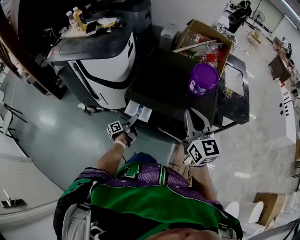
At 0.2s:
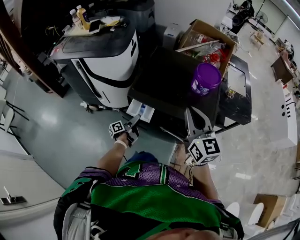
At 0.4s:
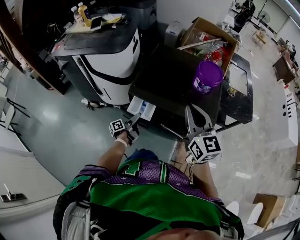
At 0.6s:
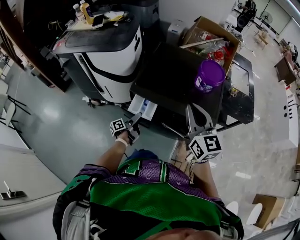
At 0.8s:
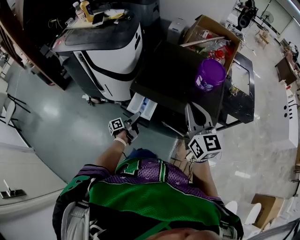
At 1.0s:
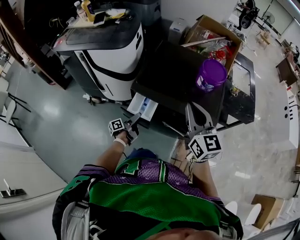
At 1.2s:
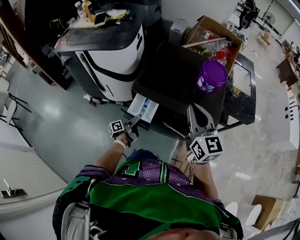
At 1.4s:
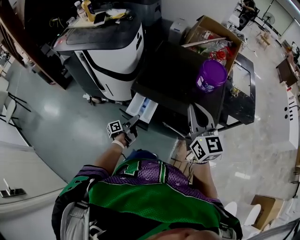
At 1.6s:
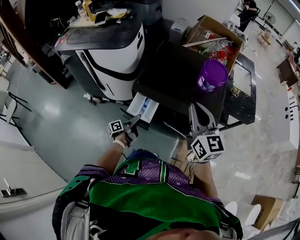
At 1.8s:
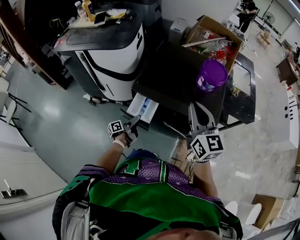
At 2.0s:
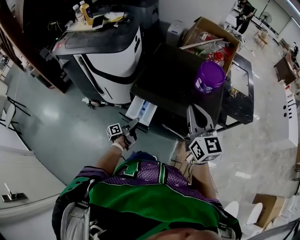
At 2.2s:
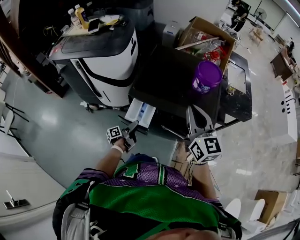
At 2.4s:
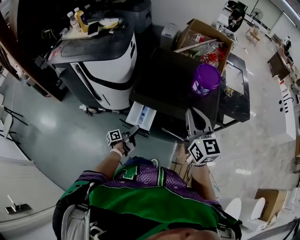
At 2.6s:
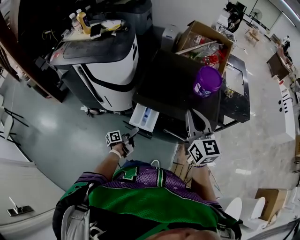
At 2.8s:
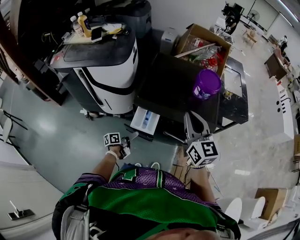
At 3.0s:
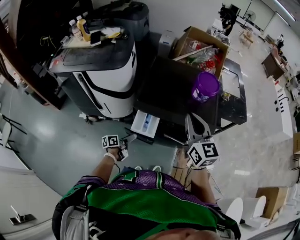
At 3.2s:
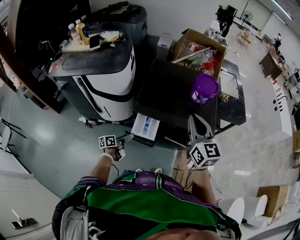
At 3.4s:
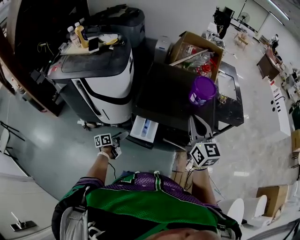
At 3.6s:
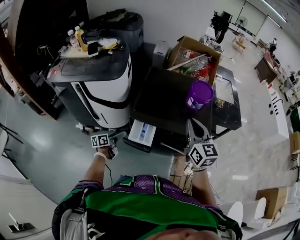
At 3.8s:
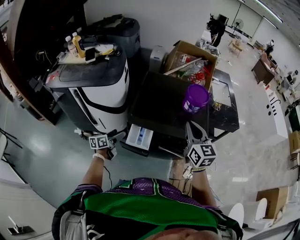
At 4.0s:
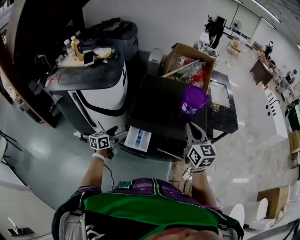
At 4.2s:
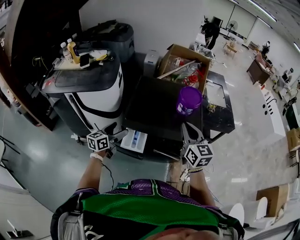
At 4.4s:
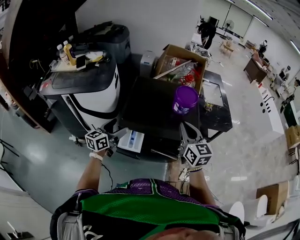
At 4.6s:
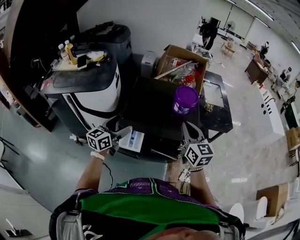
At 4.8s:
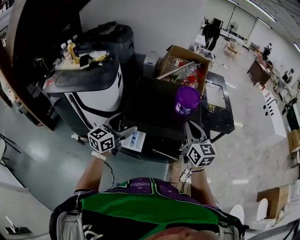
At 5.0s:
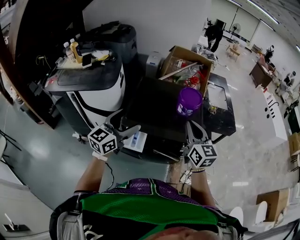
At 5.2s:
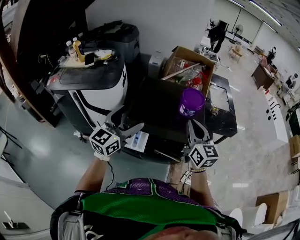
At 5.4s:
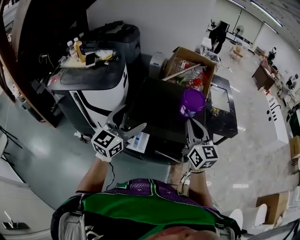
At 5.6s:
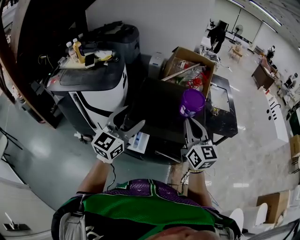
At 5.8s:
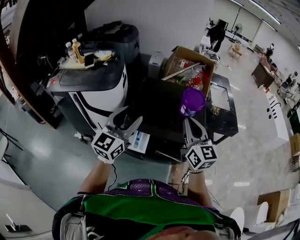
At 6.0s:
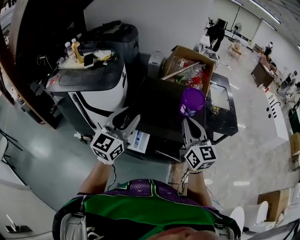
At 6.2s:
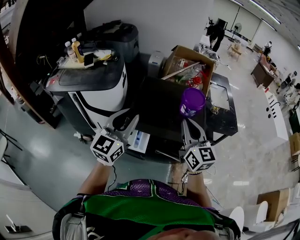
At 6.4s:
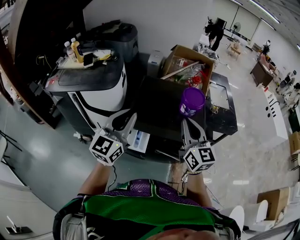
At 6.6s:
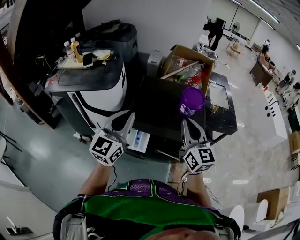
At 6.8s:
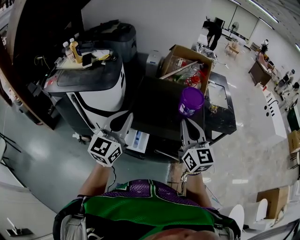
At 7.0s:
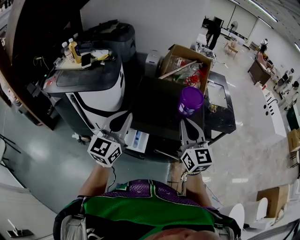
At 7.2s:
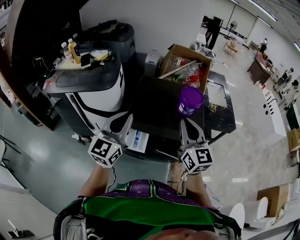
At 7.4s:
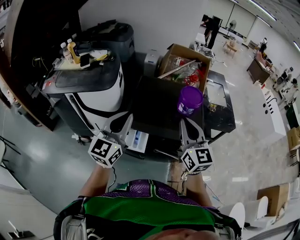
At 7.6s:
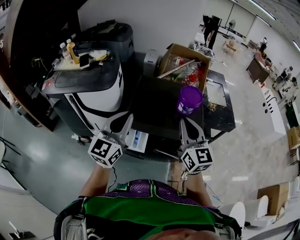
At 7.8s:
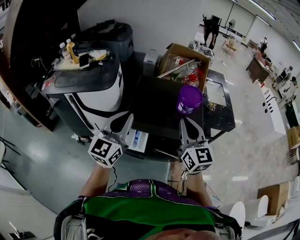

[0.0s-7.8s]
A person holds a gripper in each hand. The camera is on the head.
0.0s to 1.6s: There are only small adjustments of the grippers.
1.6s to 3.2s: The left gripper heads to the left, covering some 10 cm, and rotates roughly 30 degrees.
3.2s to 4.6s: The left gripper goes about 30 cm upward, and rotates around the line of its fingers by approximately 50 degrees, clockwise from behind. The right gripper moves to the right, some 5 cm.
4.6s to 6.2s: The right gripper shifts about 5 cm upward. The left gripper travels upward by approximately 15 cm, swivels some 30 degrees, and closes up.
6.2s to 7.8s: There are only small adjustments of the grippers.

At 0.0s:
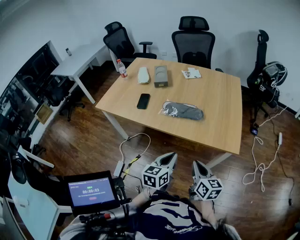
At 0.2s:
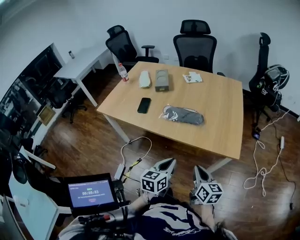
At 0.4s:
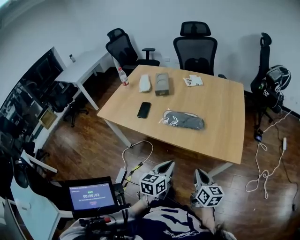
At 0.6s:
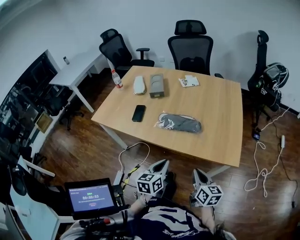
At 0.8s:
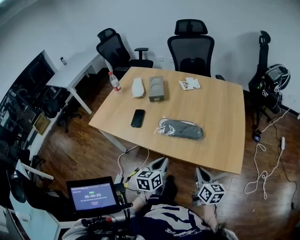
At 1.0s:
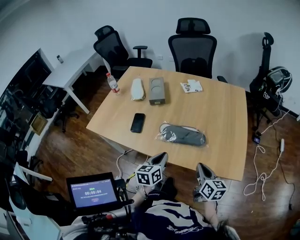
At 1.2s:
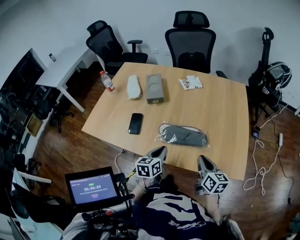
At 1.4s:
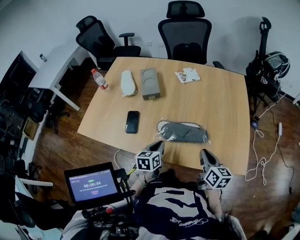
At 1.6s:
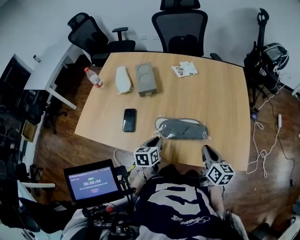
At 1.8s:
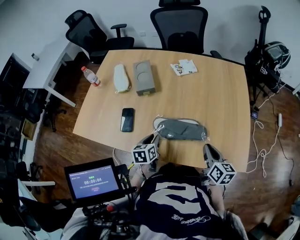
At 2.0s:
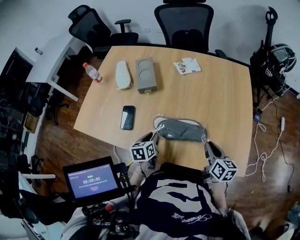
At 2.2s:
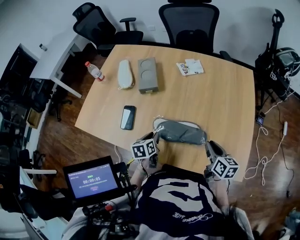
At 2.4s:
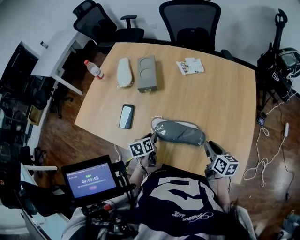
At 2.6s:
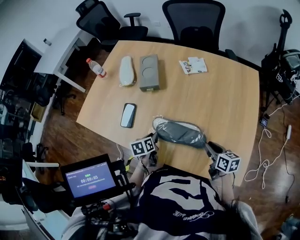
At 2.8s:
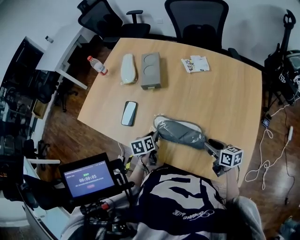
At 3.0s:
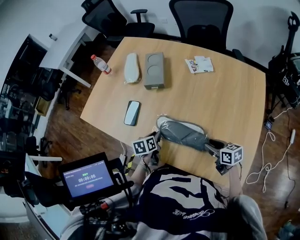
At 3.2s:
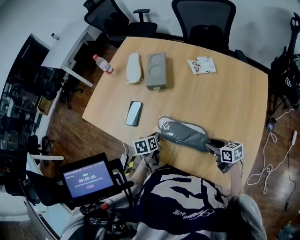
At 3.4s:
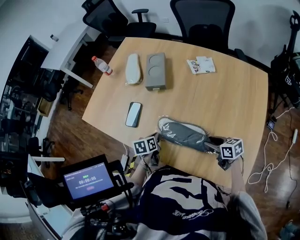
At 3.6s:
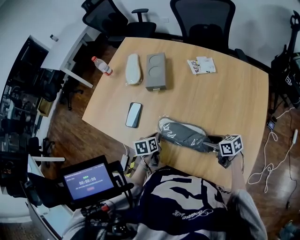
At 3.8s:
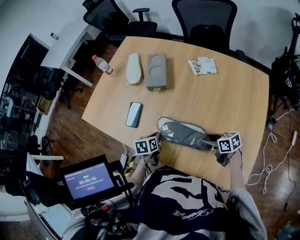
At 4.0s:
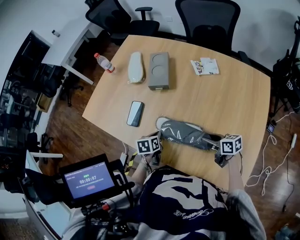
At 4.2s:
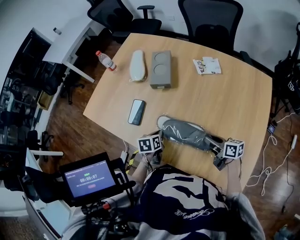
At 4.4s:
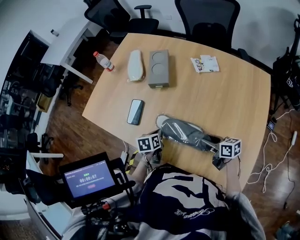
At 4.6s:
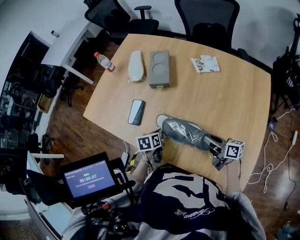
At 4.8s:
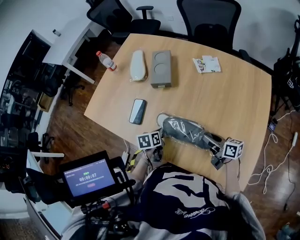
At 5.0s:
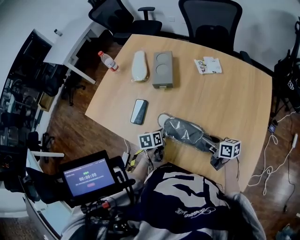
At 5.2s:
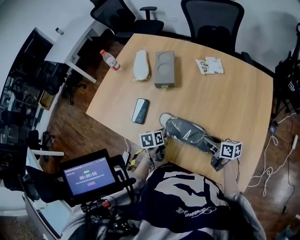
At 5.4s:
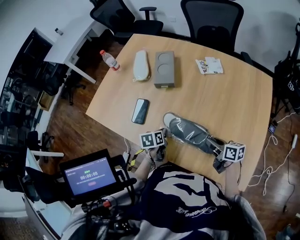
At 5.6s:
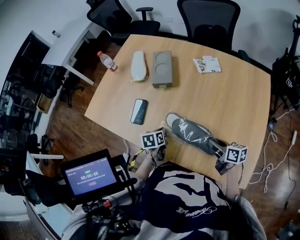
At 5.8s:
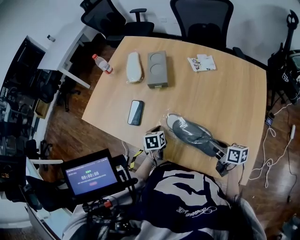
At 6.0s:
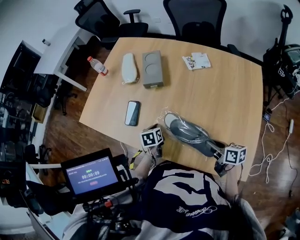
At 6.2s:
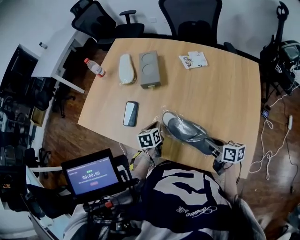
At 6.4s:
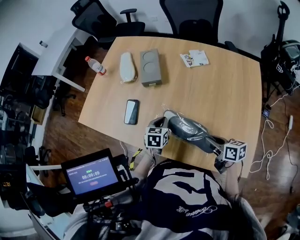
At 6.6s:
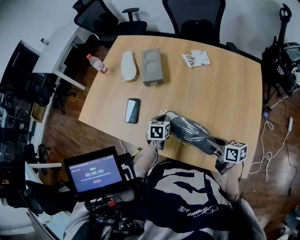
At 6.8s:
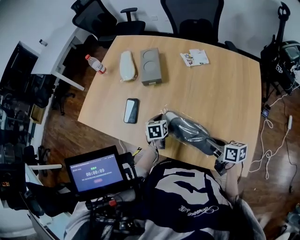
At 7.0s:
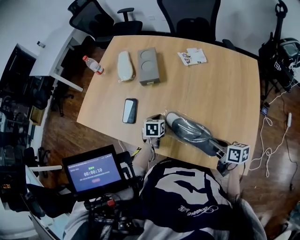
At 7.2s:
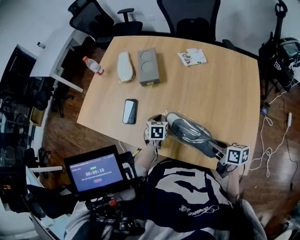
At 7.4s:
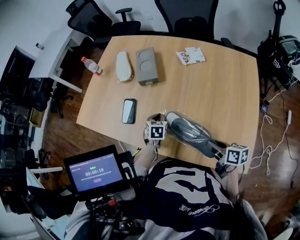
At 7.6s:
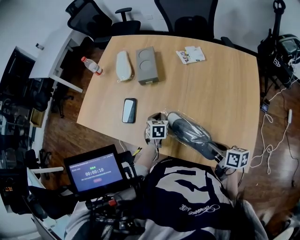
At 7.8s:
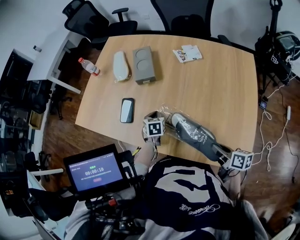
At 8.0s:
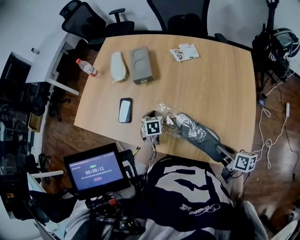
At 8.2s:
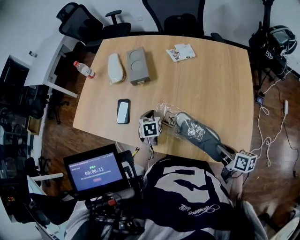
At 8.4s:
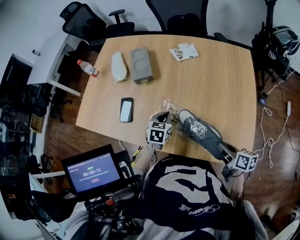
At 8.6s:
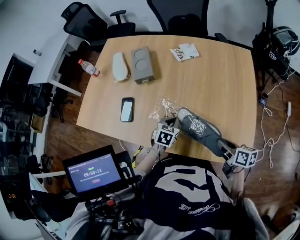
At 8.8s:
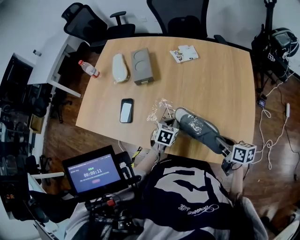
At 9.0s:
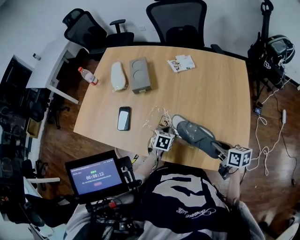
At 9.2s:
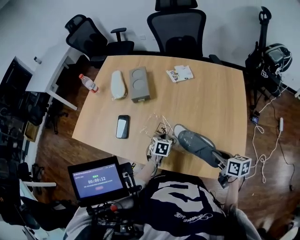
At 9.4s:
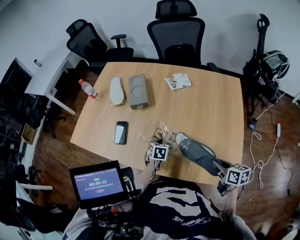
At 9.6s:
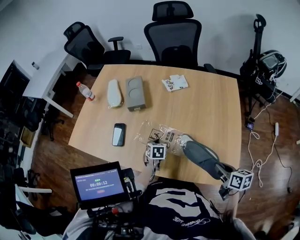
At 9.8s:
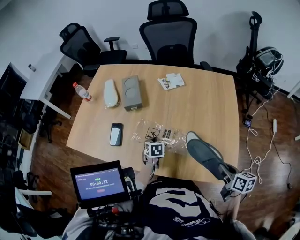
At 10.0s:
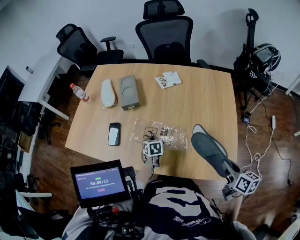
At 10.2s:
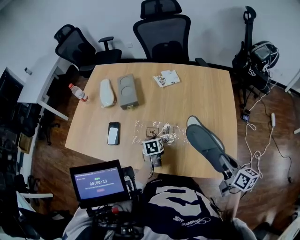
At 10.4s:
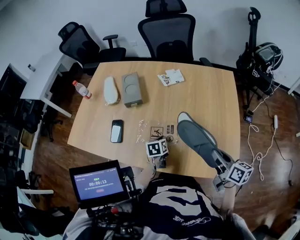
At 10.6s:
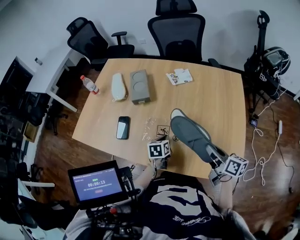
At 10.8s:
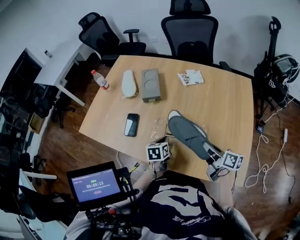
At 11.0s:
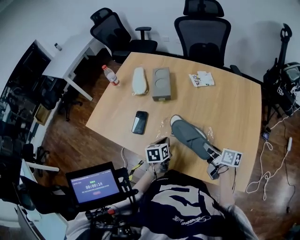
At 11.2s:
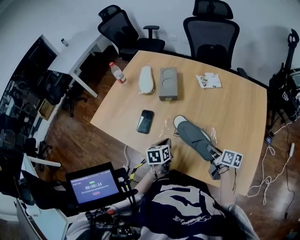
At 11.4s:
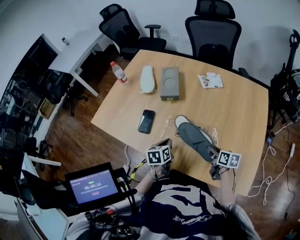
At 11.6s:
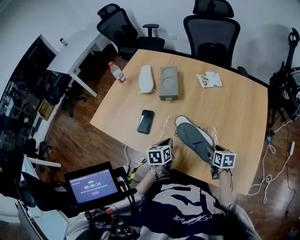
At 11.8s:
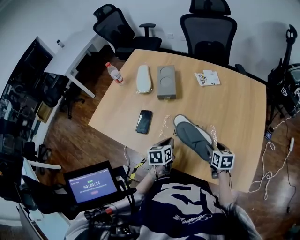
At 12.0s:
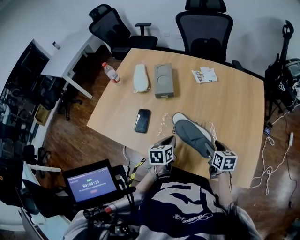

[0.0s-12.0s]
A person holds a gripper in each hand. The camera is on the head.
0.0s to 1.6s: The grippers both shift forward by about 30 cm.
1.6s to 3.0s: The right gripper goes some 10 cm downward, swivels about 40 degrees, and opens its fingers. The left gripper travels downward by some 5 cm, and changes its angle by about 20 degrees.
3.0s to 4.4s: The right gripper changes place by approximately 5 cm, while the left gripper closes up.
4.4s to 6.0s: The right gripper heads backward, covering some 5 cm, and closes.
6.0s to 7.6s: The left gripper rotates approximately 20 degrees.
7.6s to 9.0s: The right gripper is displaced to the right by about 5 cm. Meanwhile the left gripper is displaced to the right and backward by about 10 cm.
9.0s to 10.4s: The left gripper changes its angle by some 30 degrees. The right gripper goes some 10 cm upward, and turns by some 20 degrees.
10.4s to 12.0s: The left gripper travels to the left and upward by about 10 cm; the right gripper moves downward, to the left and forward, about 20 cm, swivels roughly 30 degrees, and opens up.

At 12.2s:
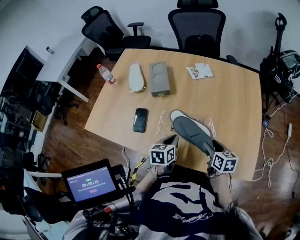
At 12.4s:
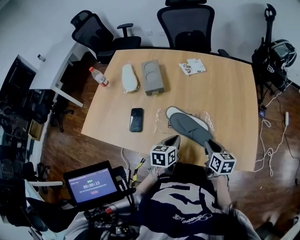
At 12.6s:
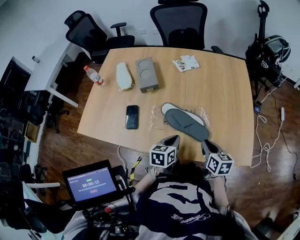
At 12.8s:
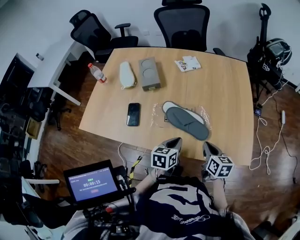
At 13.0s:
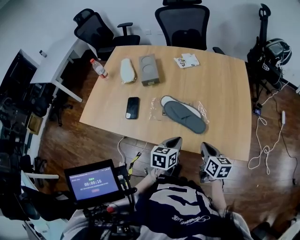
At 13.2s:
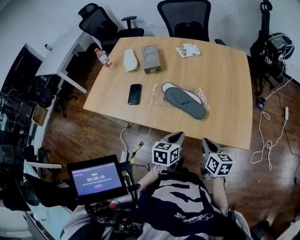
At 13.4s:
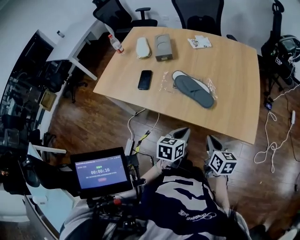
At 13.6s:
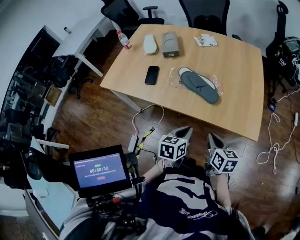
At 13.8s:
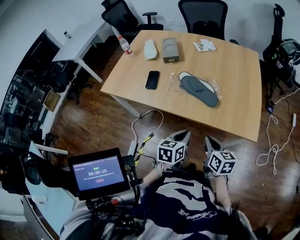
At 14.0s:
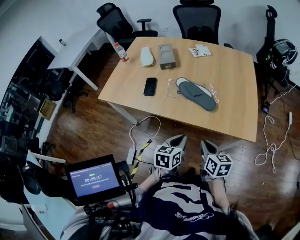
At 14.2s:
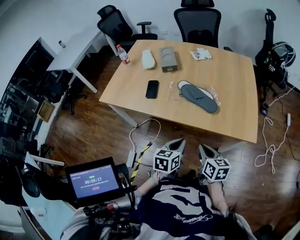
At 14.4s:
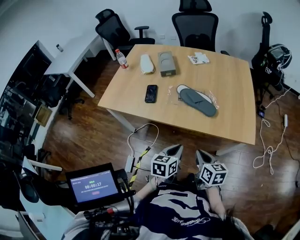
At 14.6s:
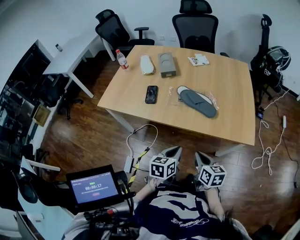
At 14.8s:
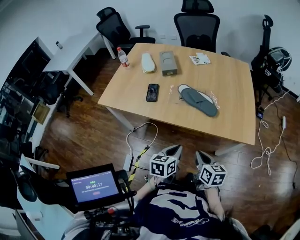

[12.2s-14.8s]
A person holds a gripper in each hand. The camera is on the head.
12.2s to 13.4s: The right gripper heads backward, covering about 25 cm, and closes up. Meanwhile the left gripper heads backward and to the right, covering about 25 cm.
13.4s to 14.8s: Both grippers travel together to the left and backward, roughly 15 cm.

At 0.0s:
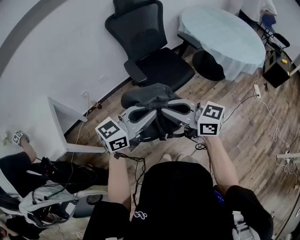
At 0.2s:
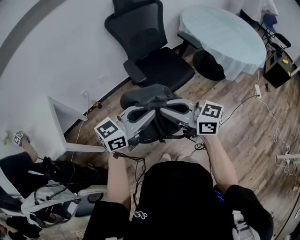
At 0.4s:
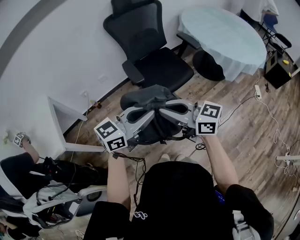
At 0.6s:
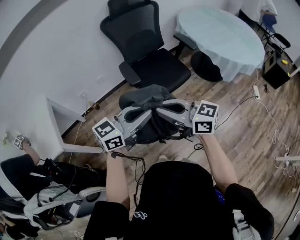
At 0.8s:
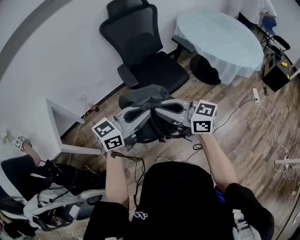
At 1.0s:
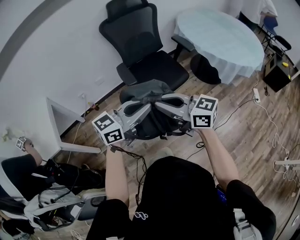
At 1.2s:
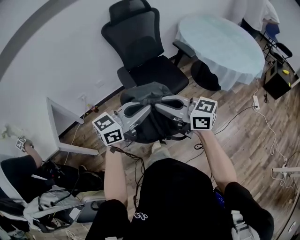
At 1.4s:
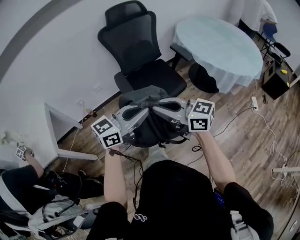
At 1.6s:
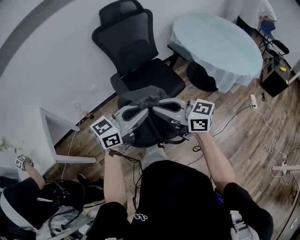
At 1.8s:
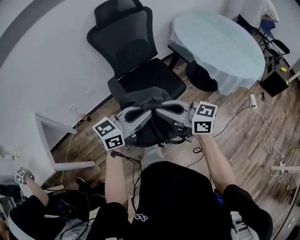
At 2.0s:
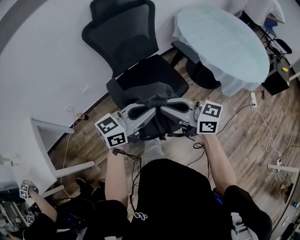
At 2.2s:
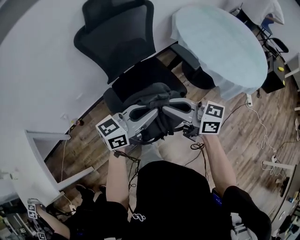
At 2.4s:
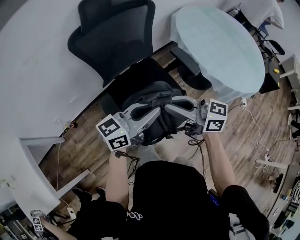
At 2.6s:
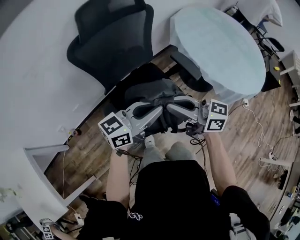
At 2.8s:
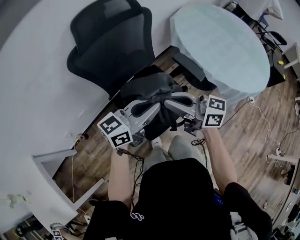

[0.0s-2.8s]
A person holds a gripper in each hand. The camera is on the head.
0.0s to 1.4s: The left gripper changes place by approximately 10 cm. The right gripper changes place by about 10 cm.
1.4s to 2.8s: The two grippers travel together, approximately 40 cm.
